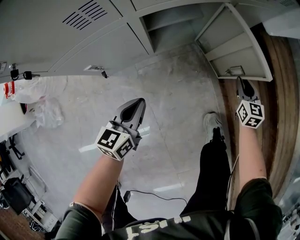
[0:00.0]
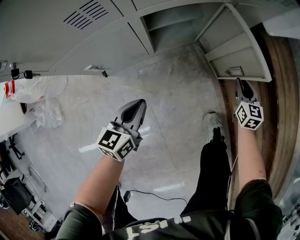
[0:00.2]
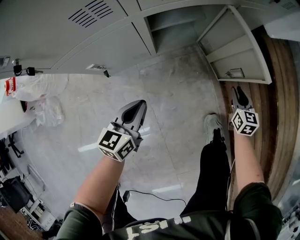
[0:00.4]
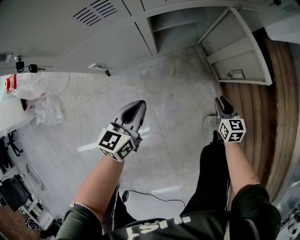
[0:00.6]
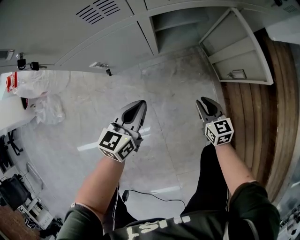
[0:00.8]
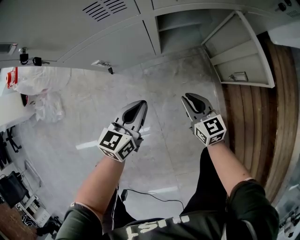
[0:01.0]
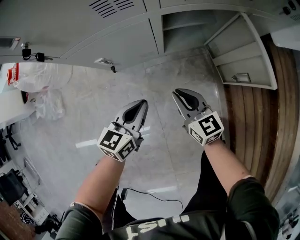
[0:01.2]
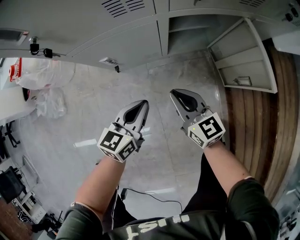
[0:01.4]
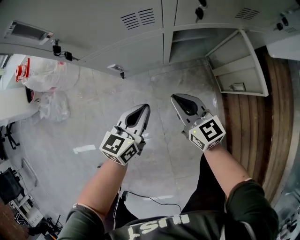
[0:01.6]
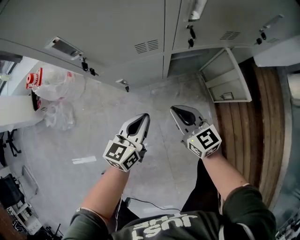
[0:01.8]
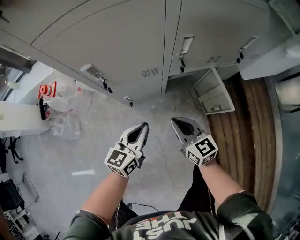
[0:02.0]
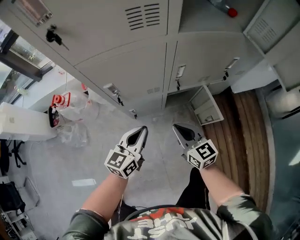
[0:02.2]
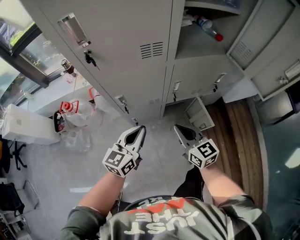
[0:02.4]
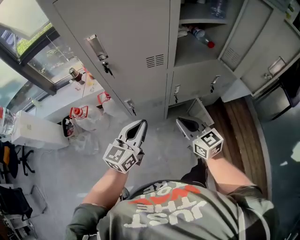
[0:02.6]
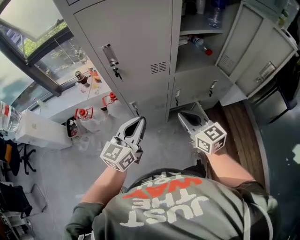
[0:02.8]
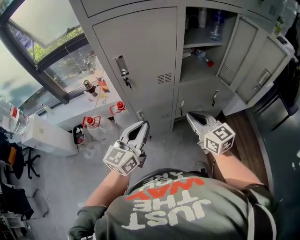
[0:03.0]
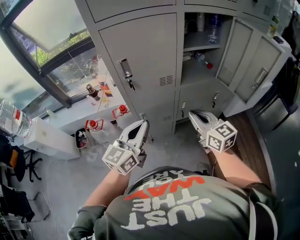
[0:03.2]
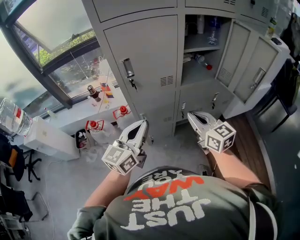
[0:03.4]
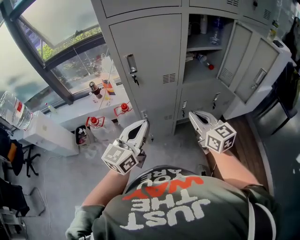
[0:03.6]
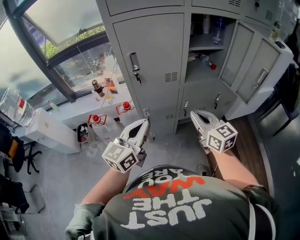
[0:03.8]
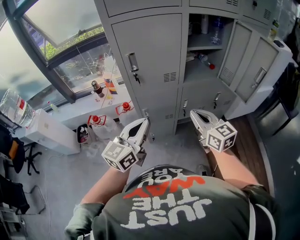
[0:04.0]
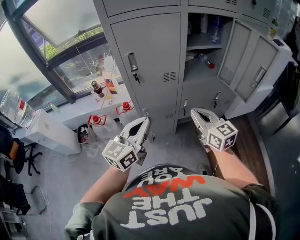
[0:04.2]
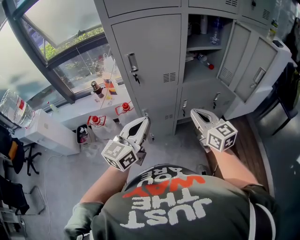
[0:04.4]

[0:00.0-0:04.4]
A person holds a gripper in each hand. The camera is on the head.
0:00.0 to 0:01.4: The right gripper changes place by some 35 cm, and changes its angle by approximately 40 degrees.
0:01.4 to 0:03.0: Both grippers travel together upward, some 70 cm. The left gripper swivels roughly 30 degrees.
0:03.0 to 0:04.4: The left gripper travels backward by some 5 cm.

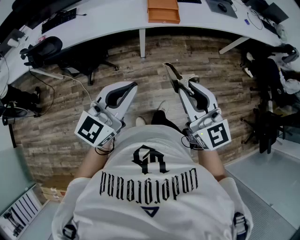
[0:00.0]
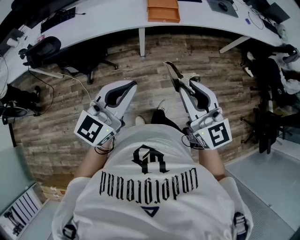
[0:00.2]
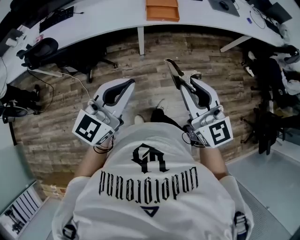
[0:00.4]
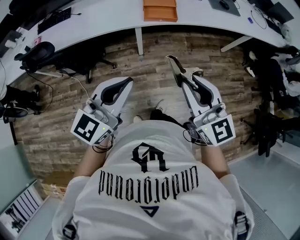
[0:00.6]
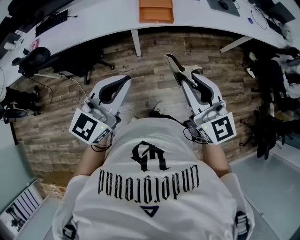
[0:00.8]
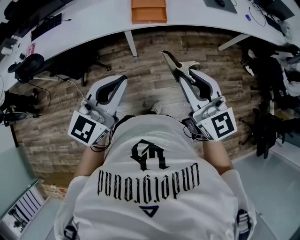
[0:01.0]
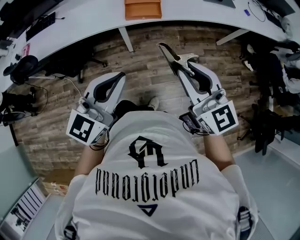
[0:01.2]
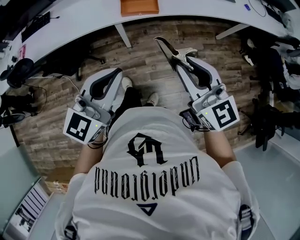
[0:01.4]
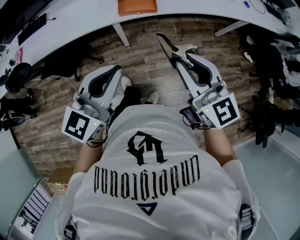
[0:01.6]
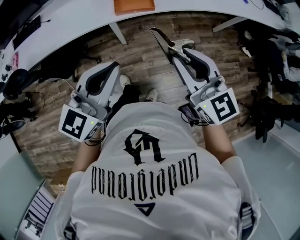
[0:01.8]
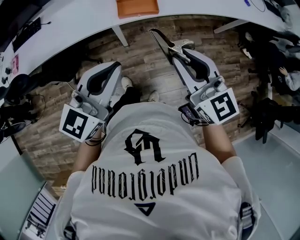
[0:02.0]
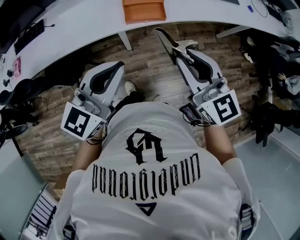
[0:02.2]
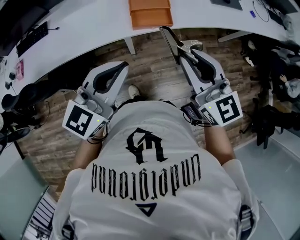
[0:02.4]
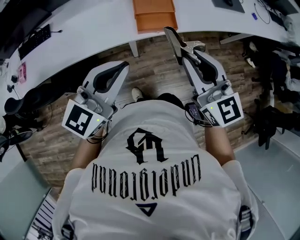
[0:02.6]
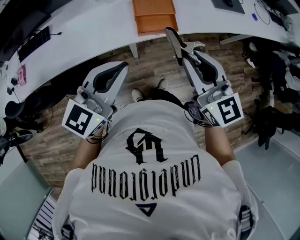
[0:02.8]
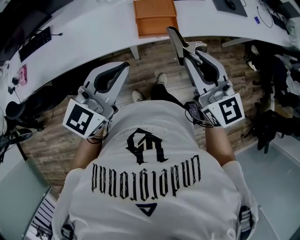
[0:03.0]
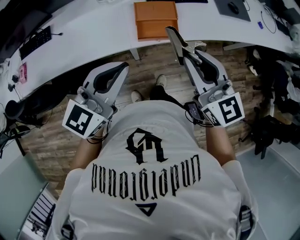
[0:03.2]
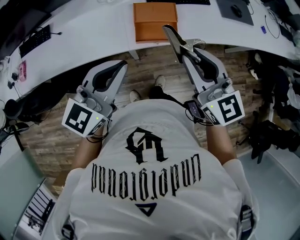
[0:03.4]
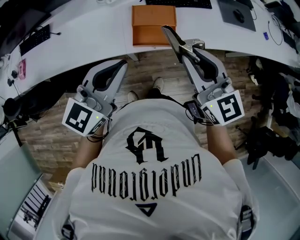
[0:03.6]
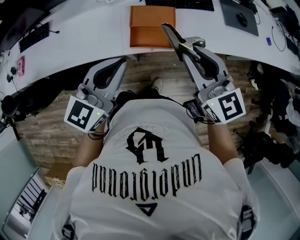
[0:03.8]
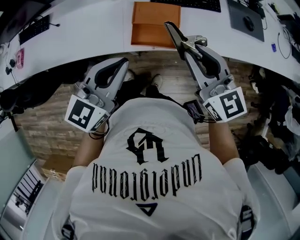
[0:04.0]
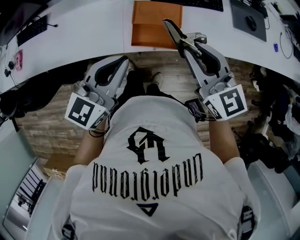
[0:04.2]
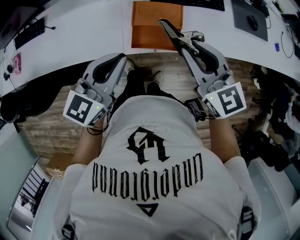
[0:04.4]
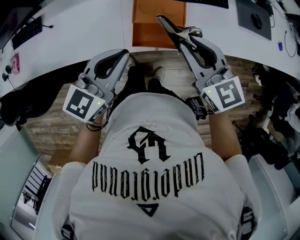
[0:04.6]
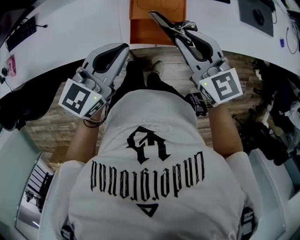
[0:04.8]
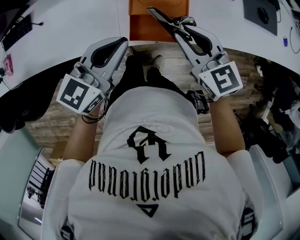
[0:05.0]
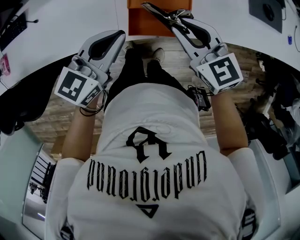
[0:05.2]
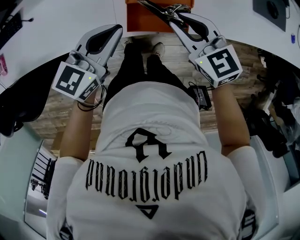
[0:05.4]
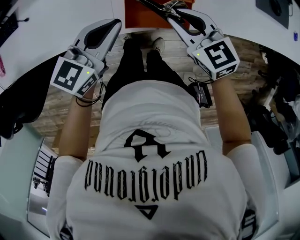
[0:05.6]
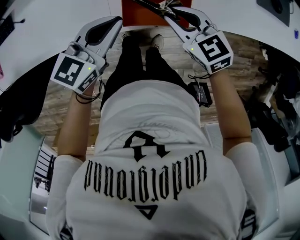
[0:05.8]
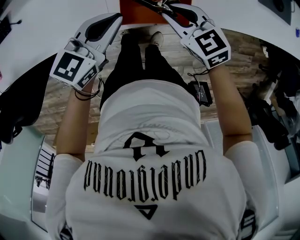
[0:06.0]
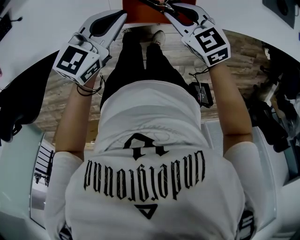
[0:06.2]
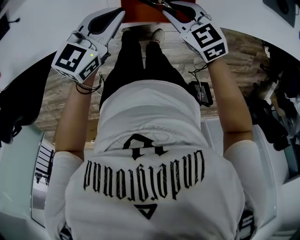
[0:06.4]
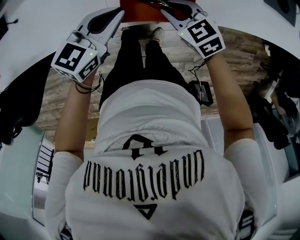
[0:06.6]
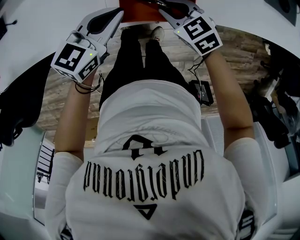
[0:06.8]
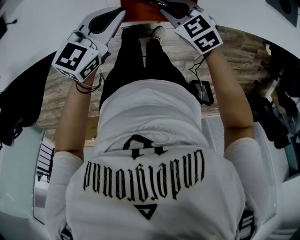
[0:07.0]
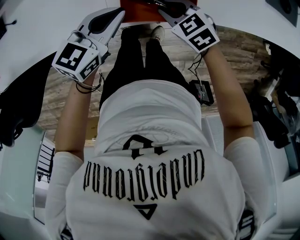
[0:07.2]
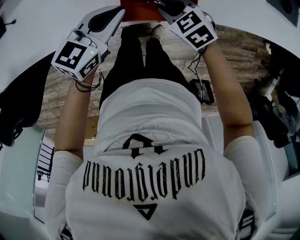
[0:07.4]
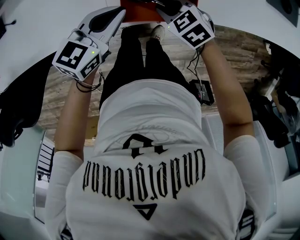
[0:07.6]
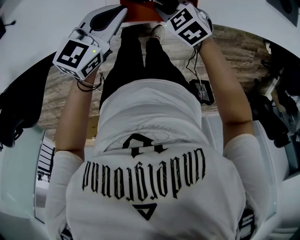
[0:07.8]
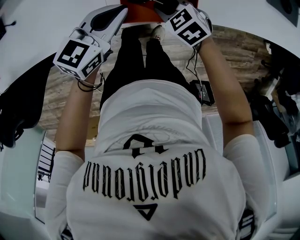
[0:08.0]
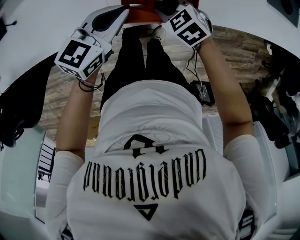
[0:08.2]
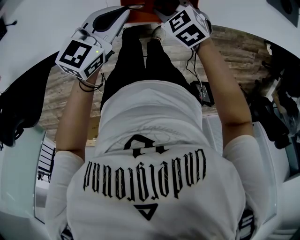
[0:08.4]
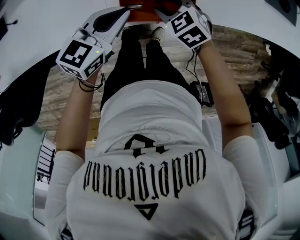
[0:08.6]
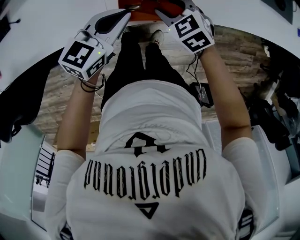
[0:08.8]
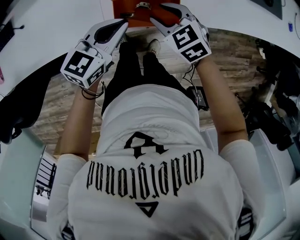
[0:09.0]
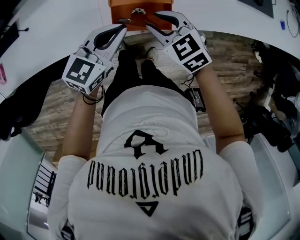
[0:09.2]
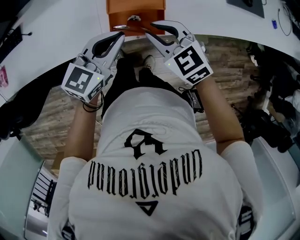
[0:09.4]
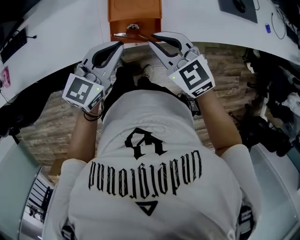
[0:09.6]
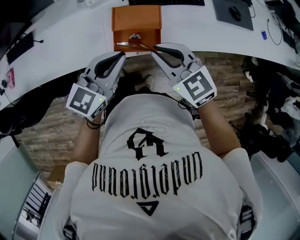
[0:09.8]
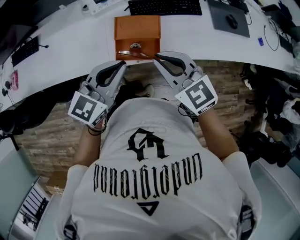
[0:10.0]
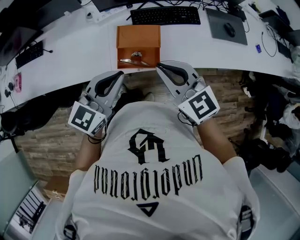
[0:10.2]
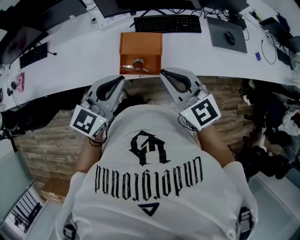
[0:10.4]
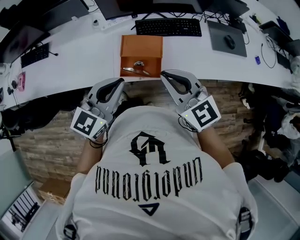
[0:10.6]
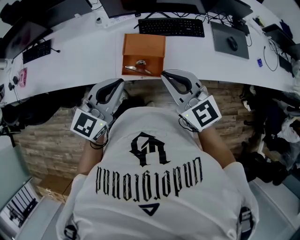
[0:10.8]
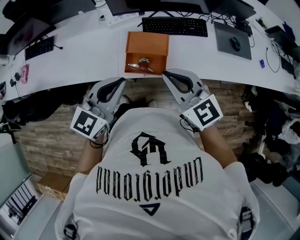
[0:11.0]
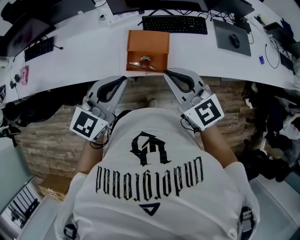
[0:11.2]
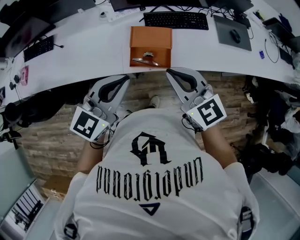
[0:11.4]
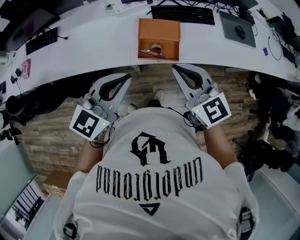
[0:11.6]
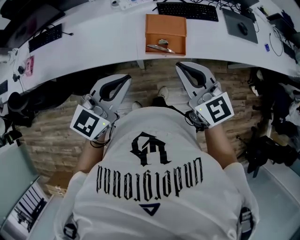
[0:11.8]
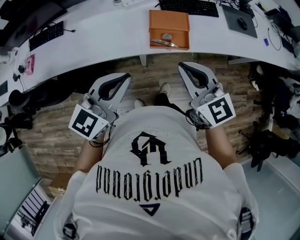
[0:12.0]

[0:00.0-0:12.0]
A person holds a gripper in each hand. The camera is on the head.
0:00.0 to 0:01.6: Both grippers travel together forward and to the right, about 20 cm.
0:01.6 to 0:03.0: The two grippers go about 20 cm forward and to the left.
0:03.0 to 0:04.4: The right gripper heads forward, covering roughly 20 cm, while the left gripper heads forward and downward, covering about 20 cm.
0:04.4 to 0:06.0: The right gripper shifts roughly 25 cm downward, and changes its angle by about 30 degrees, while the left gripper heads downward and forward, covering approximately 20 cm.
0:06.0 to 0:07.6: The right gripper is displaced downward by about 10 cm.
0:07.6 to 0:09.0: The right gripper travels upward by approximately 10 cm.
0:09.0 to 0:10.4: The left gripper travels upward and backward by about 25 cm, and changes its angle by some 20 degrees, while the right gripper moves upward, about 30 cm, points its fingers some 30 degrees further upward, and closes its fingers.
0:10.4 to 0:12.0: The two grippers go some 20 cm to the left and backward.

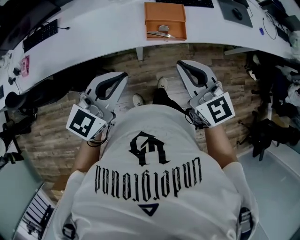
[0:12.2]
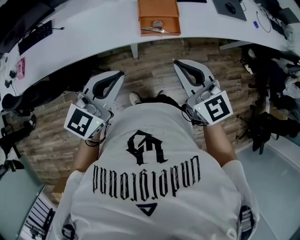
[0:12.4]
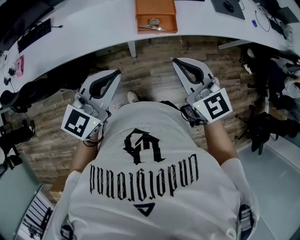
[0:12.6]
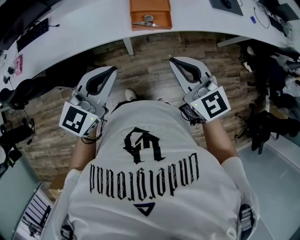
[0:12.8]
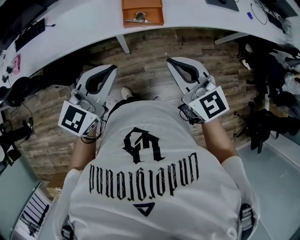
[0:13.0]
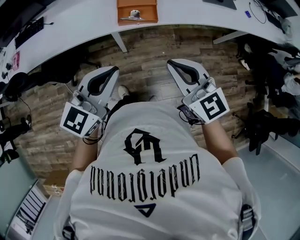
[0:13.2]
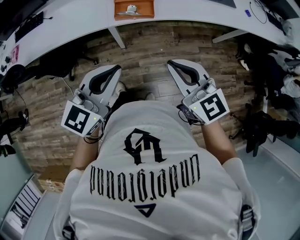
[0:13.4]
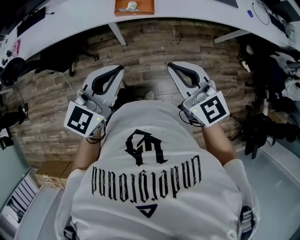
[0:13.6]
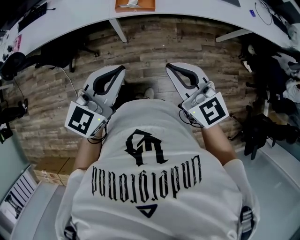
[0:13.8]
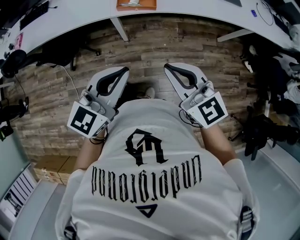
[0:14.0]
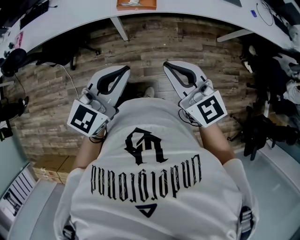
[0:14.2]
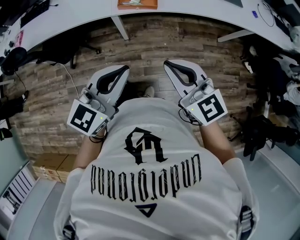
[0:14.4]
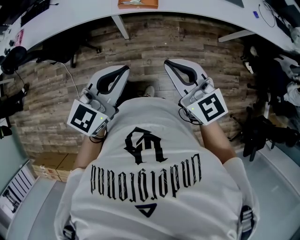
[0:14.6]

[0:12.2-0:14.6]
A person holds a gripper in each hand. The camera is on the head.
0:12.2 to 0:13.4: The two grippers go about 20 cm to the right and backward.
0:13.4 to 0:14.6: The left gripper is displaced backward by approximately 5 cm. The right gripper changes place by approximately 5 cm.

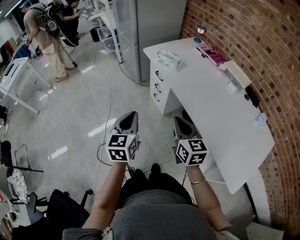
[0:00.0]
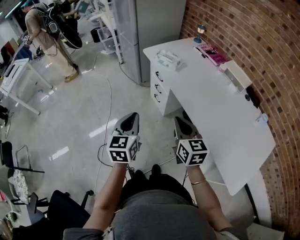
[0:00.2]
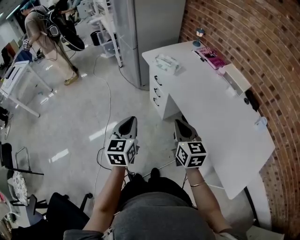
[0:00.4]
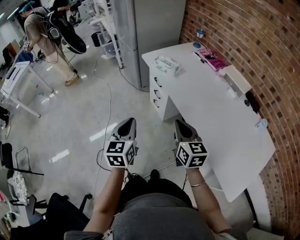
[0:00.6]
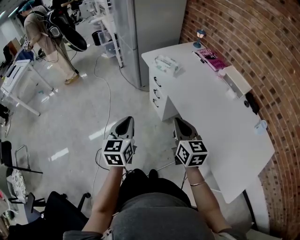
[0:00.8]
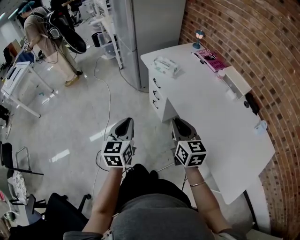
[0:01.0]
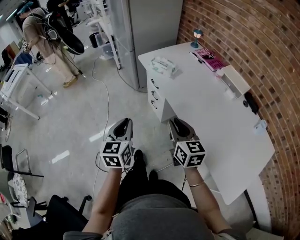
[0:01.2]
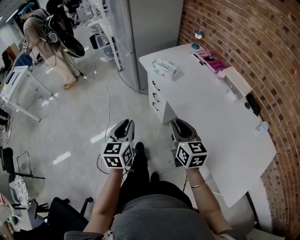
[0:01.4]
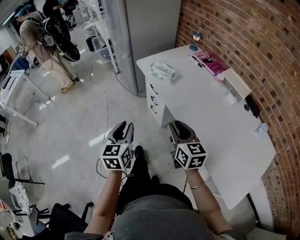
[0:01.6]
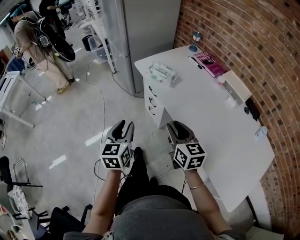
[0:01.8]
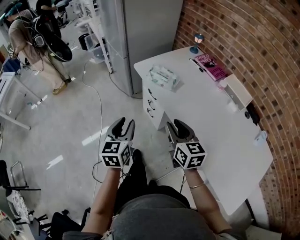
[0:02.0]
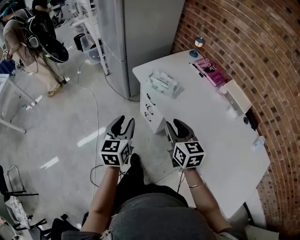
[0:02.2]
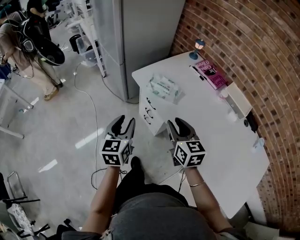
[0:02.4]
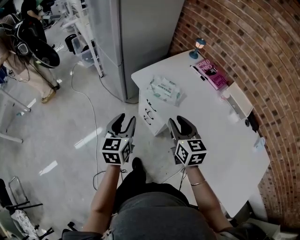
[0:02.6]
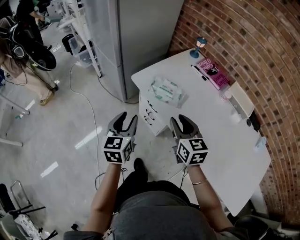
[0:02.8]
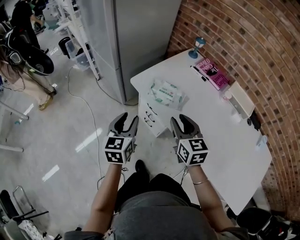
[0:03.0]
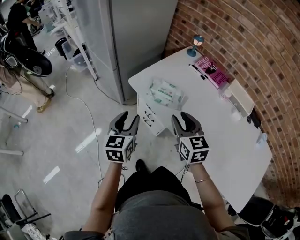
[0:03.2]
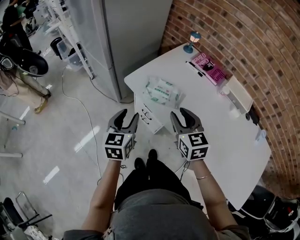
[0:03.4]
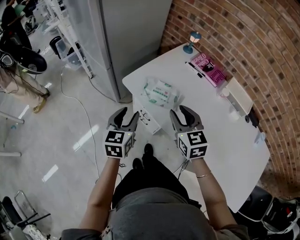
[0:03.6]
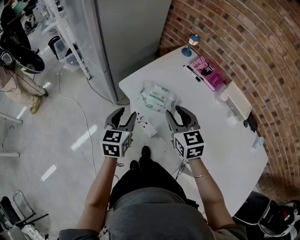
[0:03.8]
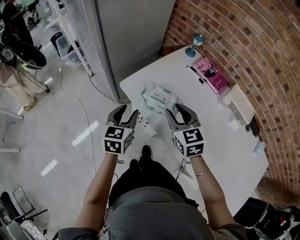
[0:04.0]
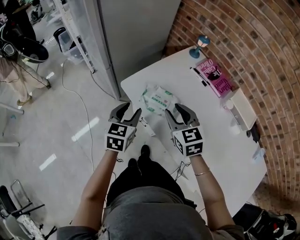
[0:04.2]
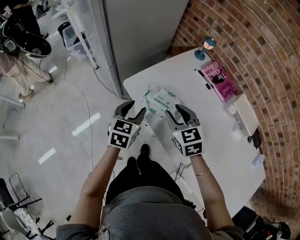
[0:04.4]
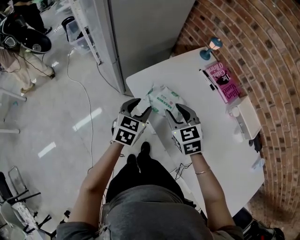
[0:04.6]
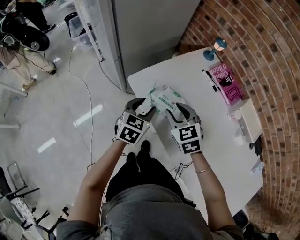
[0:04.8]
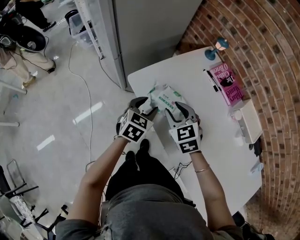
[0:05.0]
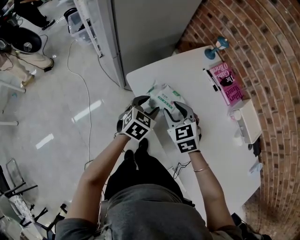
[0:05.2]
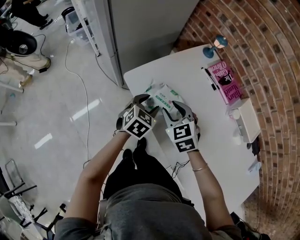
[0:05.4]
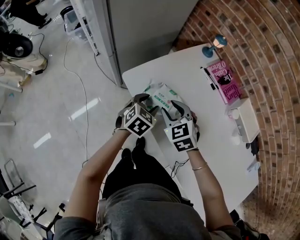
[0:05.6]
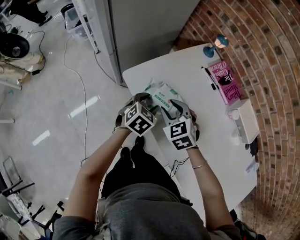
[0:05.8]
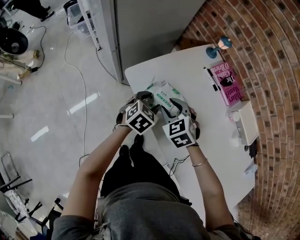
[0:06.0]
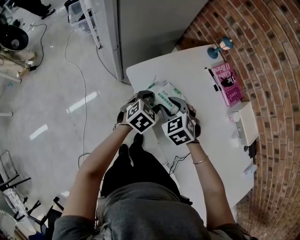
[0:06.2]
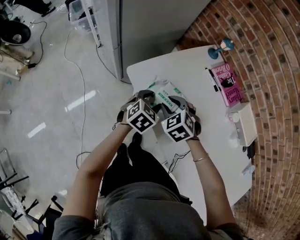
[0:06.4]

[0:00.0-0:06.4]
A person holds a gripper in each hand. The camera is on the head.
0:00.0 to 0:01.6: The grippers both shift forward by approximately 10 cm. The right gripper opens its fingers.
0:01.6 to 0:03.2: Both grippers travel together forward, approximately 25 cm.
0:03.2 to 0:04.8: The left gripper travels forward, to the right and downward by some 15 cm. Meanwhile the right gripper goes approximately 15 cm forward and downward, and rotates about 30 degrees.
0:04.8 to 0:06.4: The right gripper travels downward by about 5 cm, and changes its angle by roughly 30 degrees. The left gripper ends up about 5 cm from where it was.
